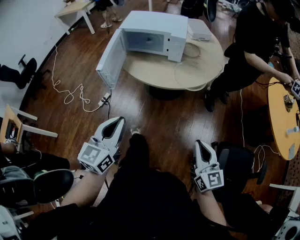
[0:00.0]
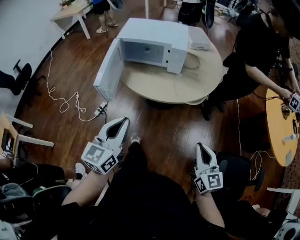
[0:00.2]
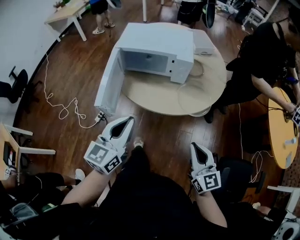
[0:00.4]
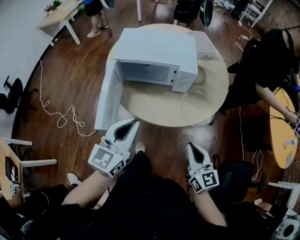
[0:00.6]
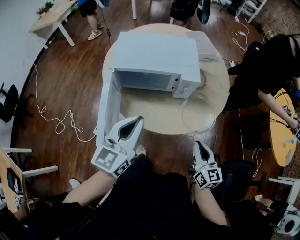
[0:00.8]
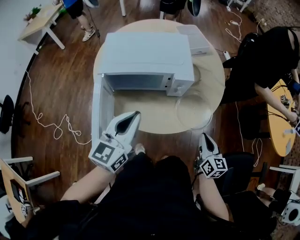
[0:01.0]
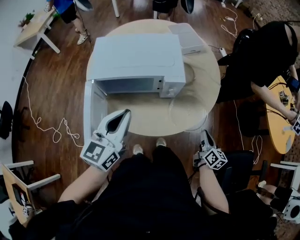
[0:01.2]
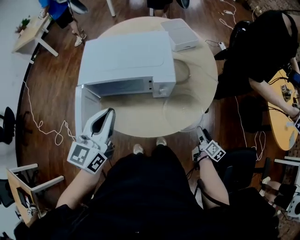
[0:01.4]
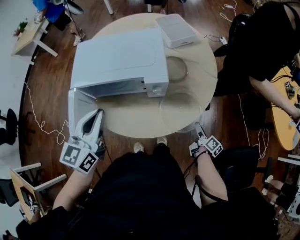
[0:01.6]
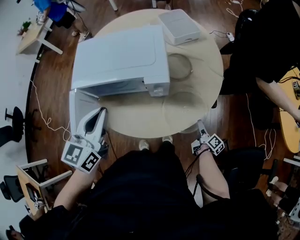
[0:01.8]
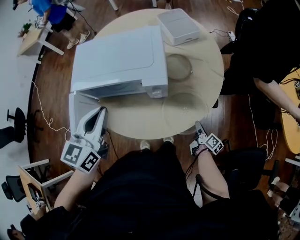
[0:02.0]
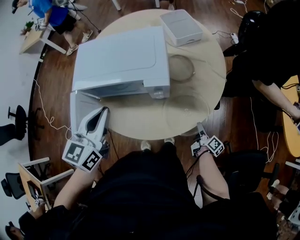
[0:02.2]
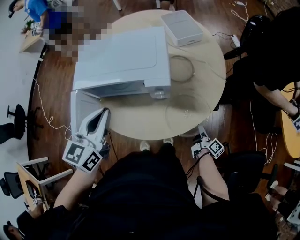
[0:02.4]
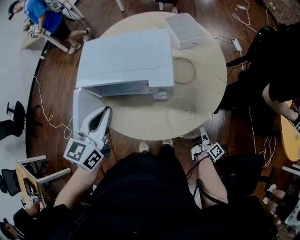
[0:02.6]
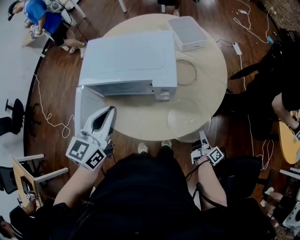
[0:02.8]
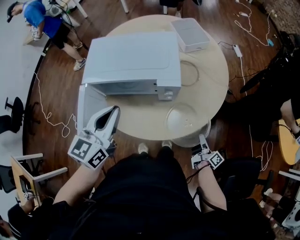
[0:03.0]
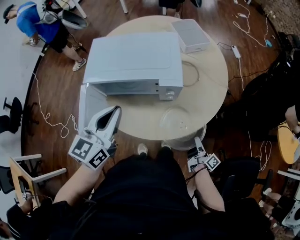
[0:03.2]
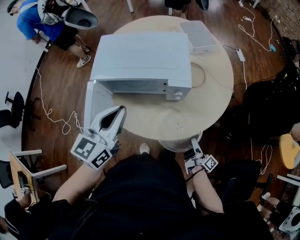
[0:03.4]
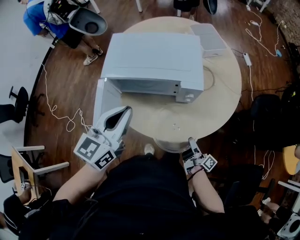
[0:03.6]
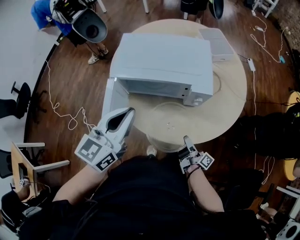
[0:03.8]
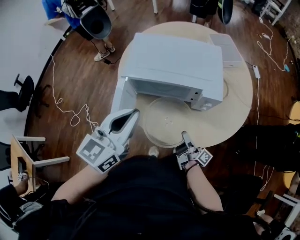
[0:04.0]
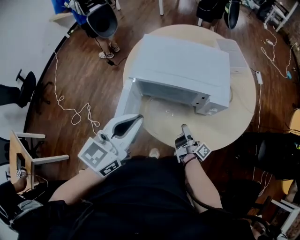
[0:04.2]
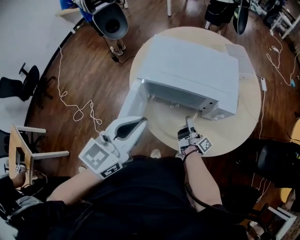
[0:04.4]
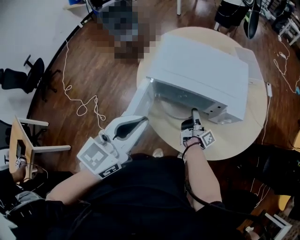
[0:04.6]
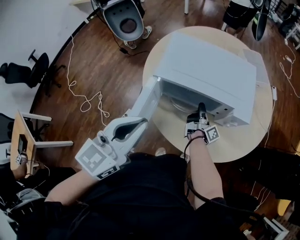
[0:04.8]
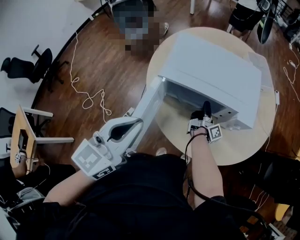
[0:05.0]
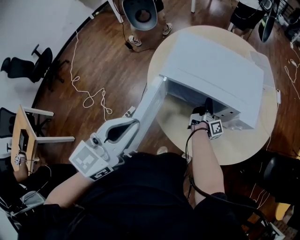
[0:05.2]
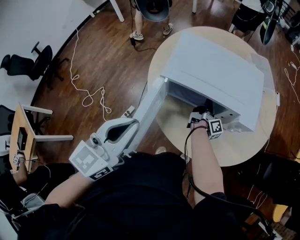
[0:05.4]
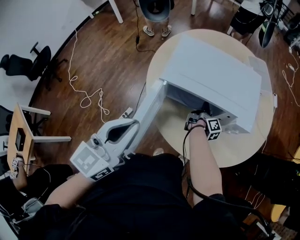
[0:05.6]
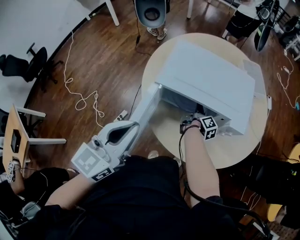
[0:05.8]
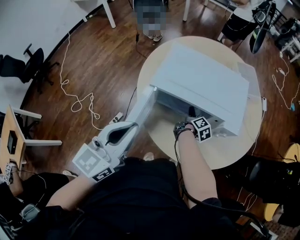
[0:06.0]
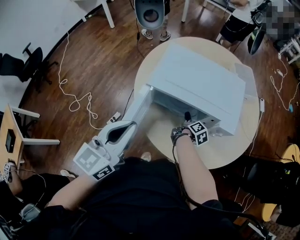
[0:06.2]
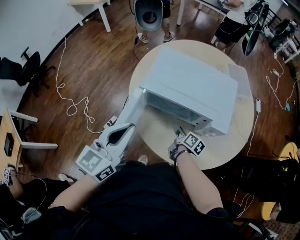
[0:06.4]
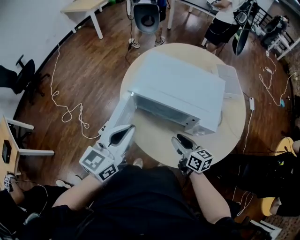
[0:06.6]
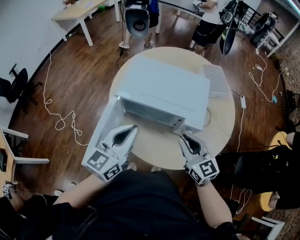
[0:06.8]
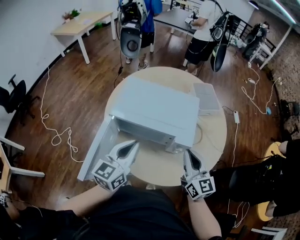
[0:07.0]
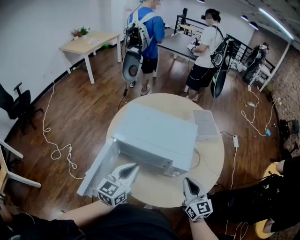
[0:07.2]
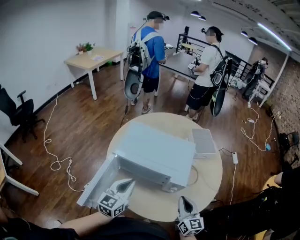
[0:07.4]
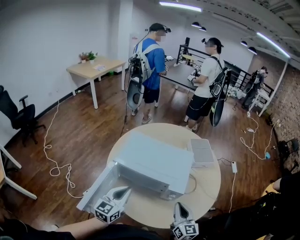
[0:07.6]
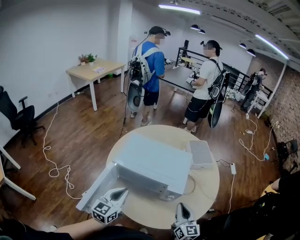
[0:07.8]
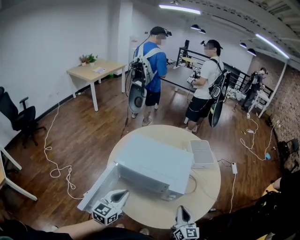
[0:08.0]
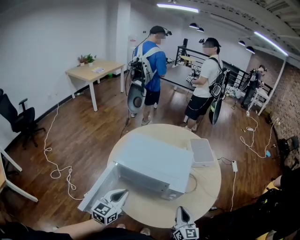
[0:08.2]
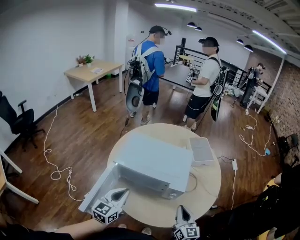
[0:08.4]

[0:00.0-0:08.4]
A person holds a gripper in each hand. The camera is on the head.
0:00.0 to 0:01.4: The left gripper heads forward, covering roughly 30 cm, while the right gripper travels forward and downward by approximately 35 cm, rotates around the line of its fingers by roughly 50 degrees, clockwise from behind, and opens its fingers.
0:01.4 to 0:02.8: The right gripper turns by some 30 degrees, and closes up.
0:02.8 to 0:04.2: The left gripper heads to the left, covering about 5 cm. Meanwhile the right gripper goes about 30 cm to the left, and rotates roughly 20 degrees.
0:04.2 to 0:05.6: The right gripper moves forward, roughly 15 cm, and swivels some 30 degrees; the left gripper goes about 10 cm to the left.
0:05.6 to 0:07.0: The left gripper moves approximately 15 cm; the right gripper travels upward by about 25 cm, rolls counterclockwise, seen from behind, by approximately 80 degrees, and opens, then closes again.
0:07.0 to 0:08.4: The left gripper moves about 5 cm, while the right gripper goes approximately 5 cm downward.

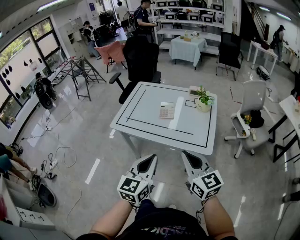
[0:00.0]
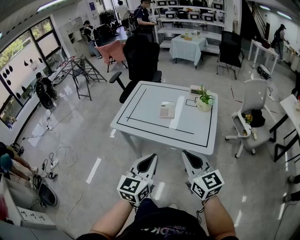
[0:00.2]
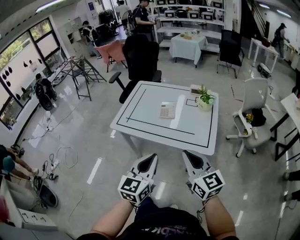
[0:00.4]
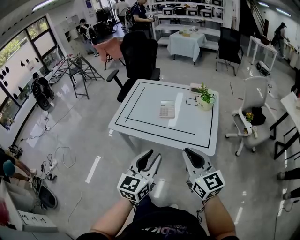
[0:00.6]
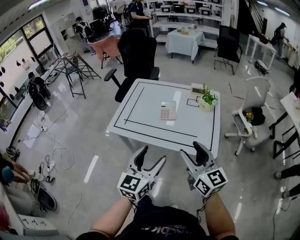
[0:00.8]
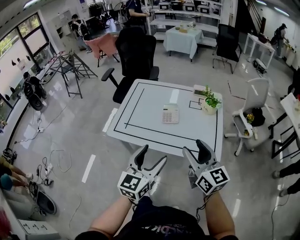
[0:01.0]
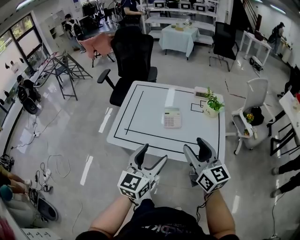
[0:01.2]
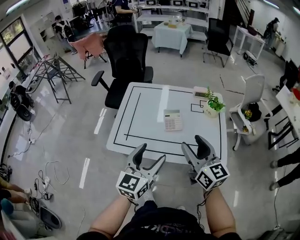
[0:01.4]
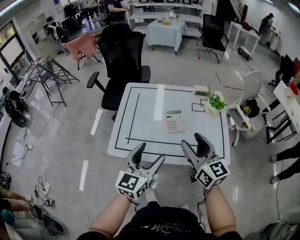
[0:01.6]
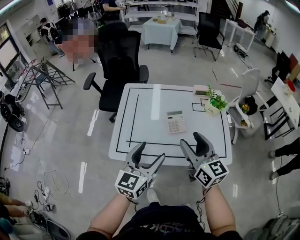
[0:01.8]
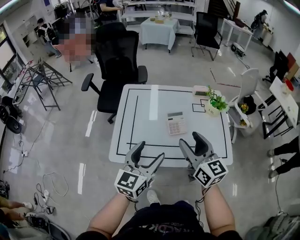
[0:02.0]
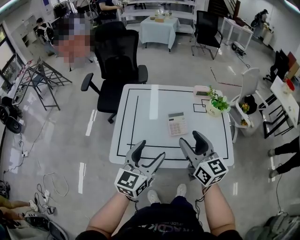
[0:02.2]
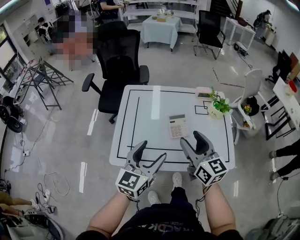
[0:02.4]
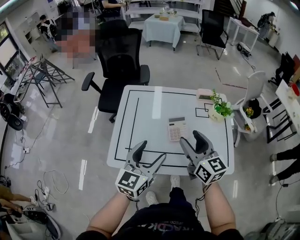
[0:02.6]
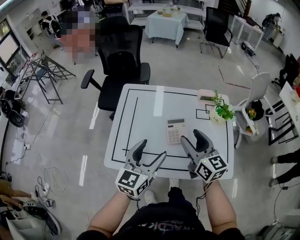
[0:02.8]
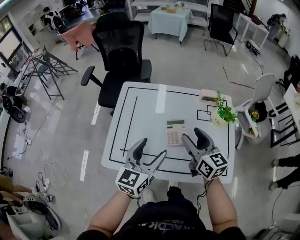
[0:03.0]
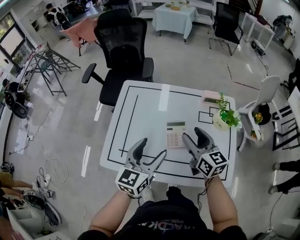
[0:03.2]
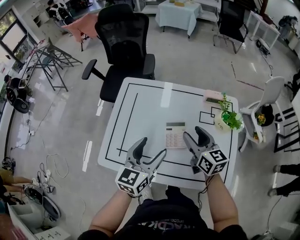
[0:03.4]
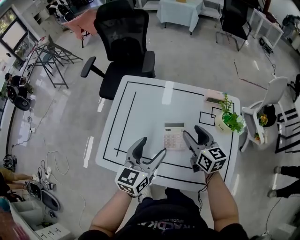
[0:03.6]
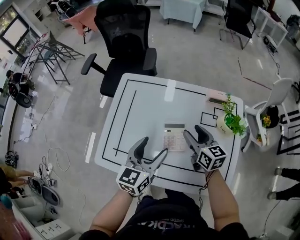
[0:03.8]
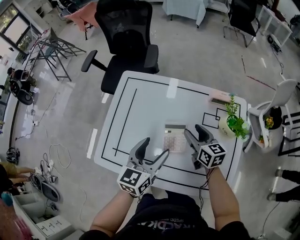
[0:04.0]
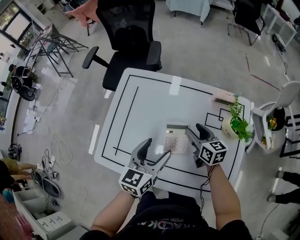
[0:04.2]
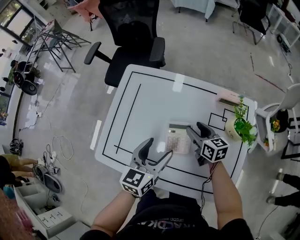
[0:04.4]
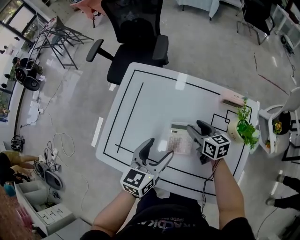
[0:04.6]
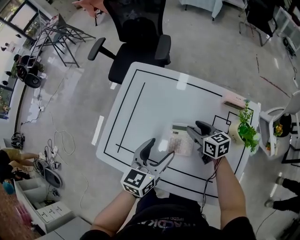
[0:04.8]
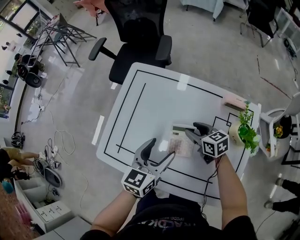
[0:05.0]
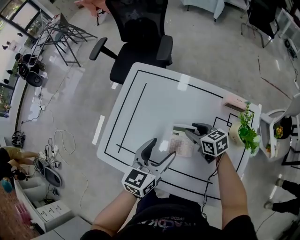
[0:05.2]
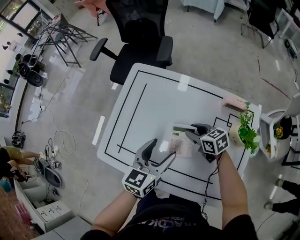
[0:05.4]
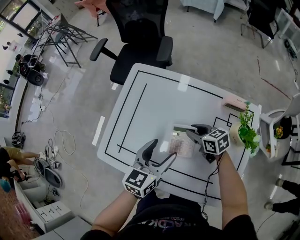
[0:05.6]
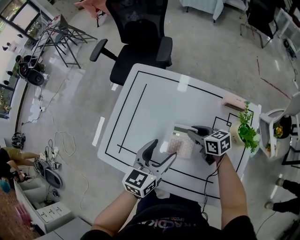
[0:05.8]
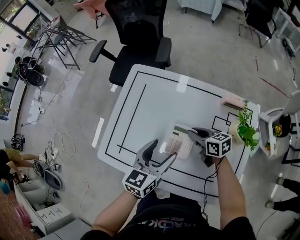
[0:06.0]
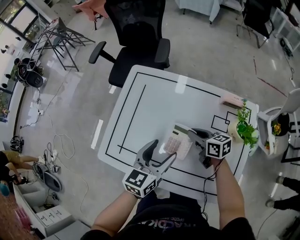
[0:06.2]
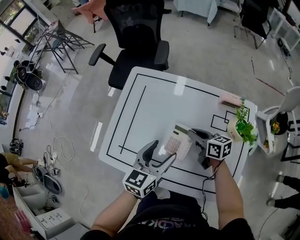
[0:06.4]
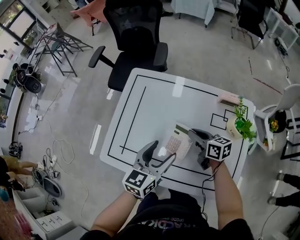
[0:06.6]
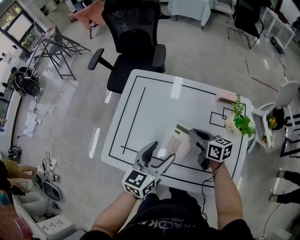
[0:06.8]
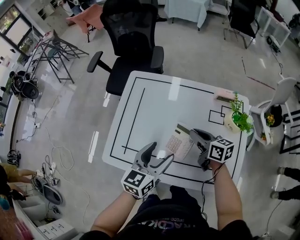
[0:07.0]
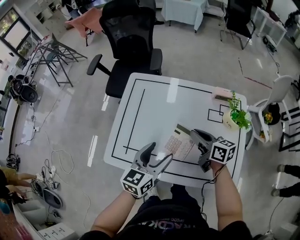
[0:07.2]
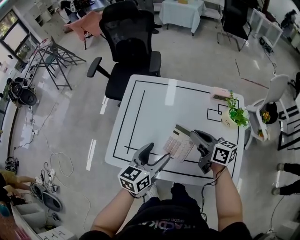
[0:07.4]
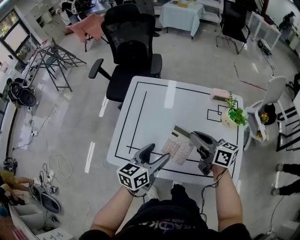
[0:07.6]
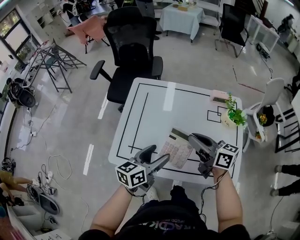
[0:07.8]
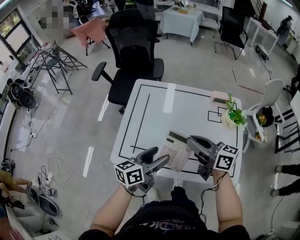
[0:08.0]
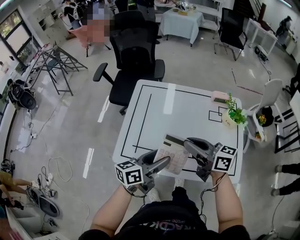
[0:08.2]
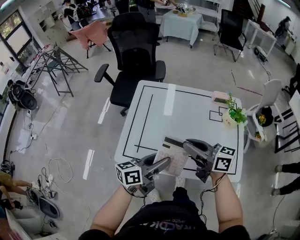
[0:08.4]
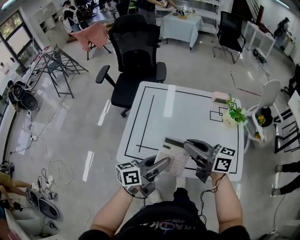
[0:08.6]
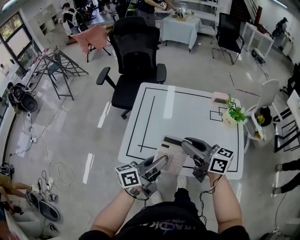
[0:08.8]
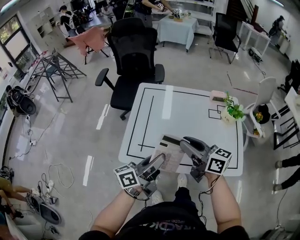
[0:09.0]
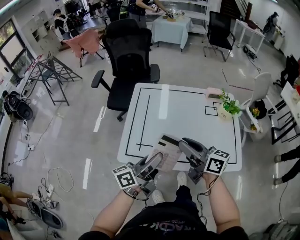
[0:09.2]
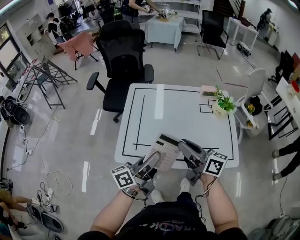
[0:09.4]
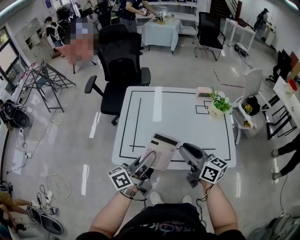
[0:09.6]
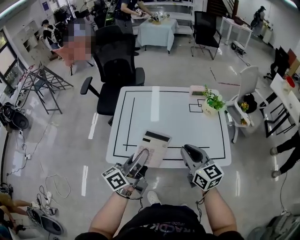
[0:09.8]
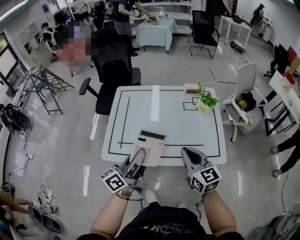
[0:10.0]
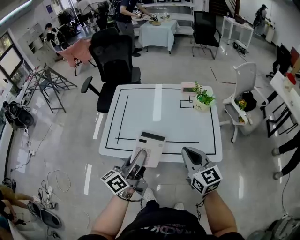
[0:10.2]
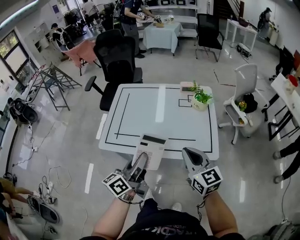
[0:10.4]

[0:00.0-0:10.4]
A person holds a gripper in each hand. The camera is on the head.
0:00.0 to 0:01.4: The right gripper goes roughly 25 cm forward, and opens. The left gripper goes about 25 cm forward and to the left, and opens.
0:01.4 to 0:03.0: The grippers both shift forward by roughly 20 cm.
0:03.0 to 0:04.4: The left gripper goes about 15 cm downward, forward and to the right. The right gripper heads downward and forward, covering some 25 cm, and rotates some 20 degrees.
0:04.4 to 0:06.0: The right gripper closes.
0:06.0 to 0:07.4: The right gripper goes roughly 15 cm upward and backward, and changes its angle by some 20 degrees; the left gripper travels to the left and backward by approximately 10 cm.
0:07.4 to 0:09.0: The left gripper travels backward, to the left and upward by roughly 15 cm, changes its angle by some 40 degrees, and closes, while the right gripper heads to the left, backward and upward, covering approximately 20 cm.
0:09.0 to 0:10.4: The right gripper goes roughly 25 cm to the right and backward, and swivels about 30 degrees, while the left gripper shifts approximately 15 cm to the right and backward.

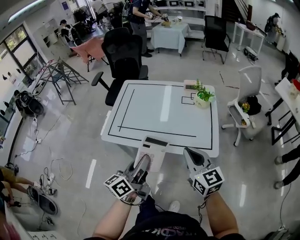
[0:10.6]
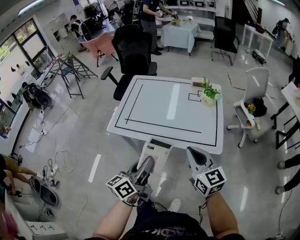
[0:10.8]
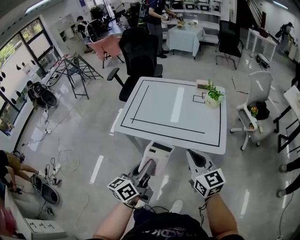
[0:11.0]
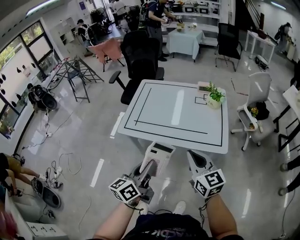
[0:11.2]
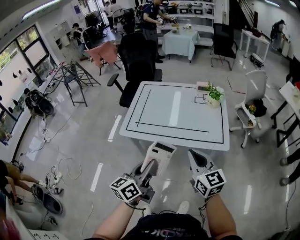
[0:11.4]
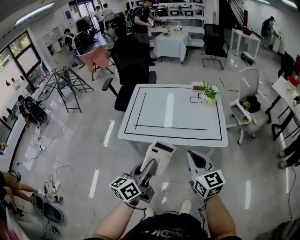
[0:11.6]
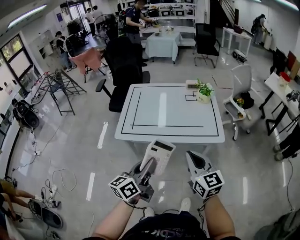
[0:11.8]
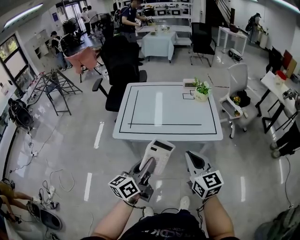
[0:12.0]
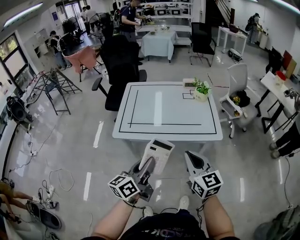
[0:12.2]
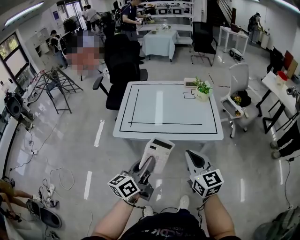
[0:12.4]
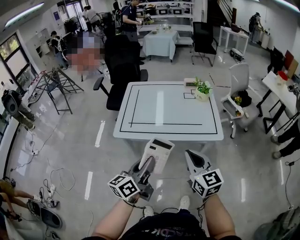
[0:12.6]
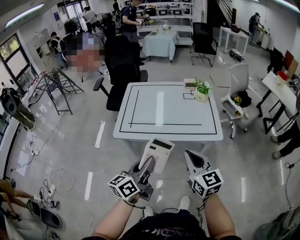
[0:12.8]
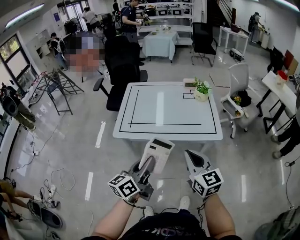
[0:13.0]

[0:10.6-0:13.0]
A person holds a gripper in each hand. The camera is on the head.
0:10.6 to 0:11.8: The two grippers go about 15 cm backward and to the left.
0:11.8 to 0:13.0: The two grippers keep their place.

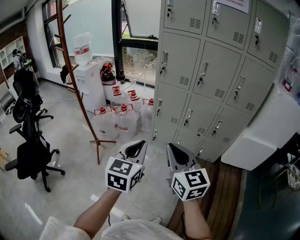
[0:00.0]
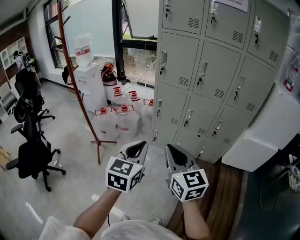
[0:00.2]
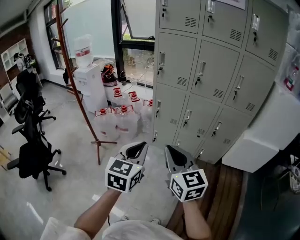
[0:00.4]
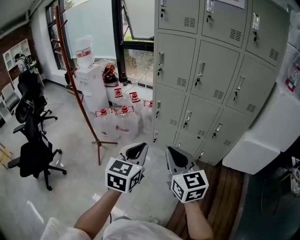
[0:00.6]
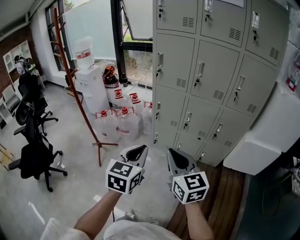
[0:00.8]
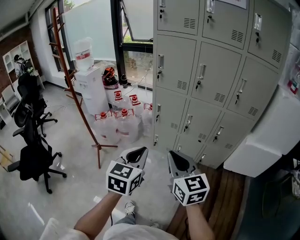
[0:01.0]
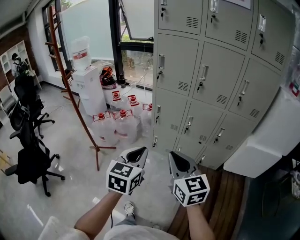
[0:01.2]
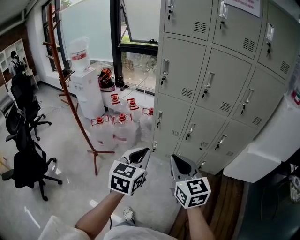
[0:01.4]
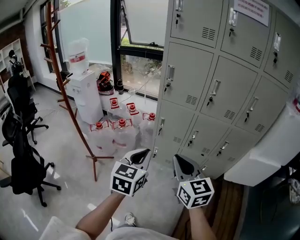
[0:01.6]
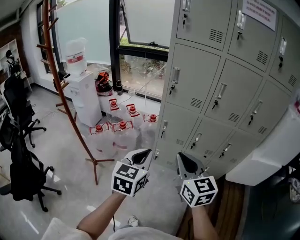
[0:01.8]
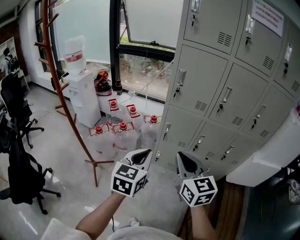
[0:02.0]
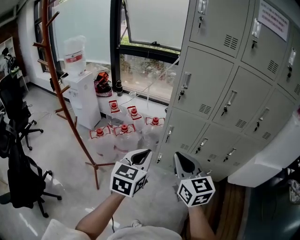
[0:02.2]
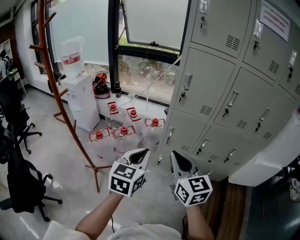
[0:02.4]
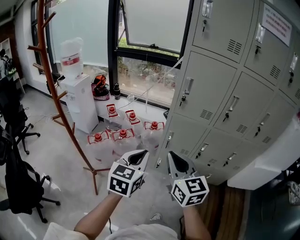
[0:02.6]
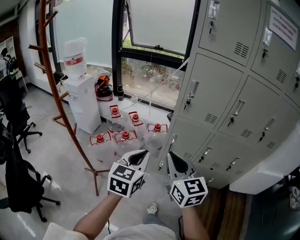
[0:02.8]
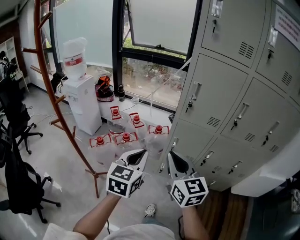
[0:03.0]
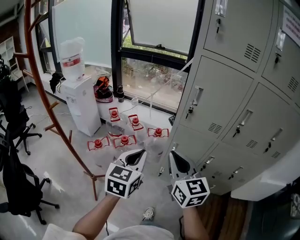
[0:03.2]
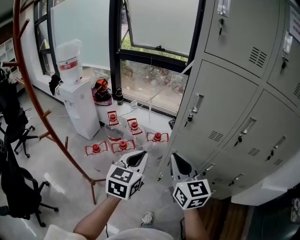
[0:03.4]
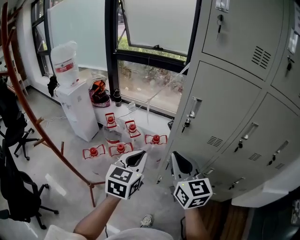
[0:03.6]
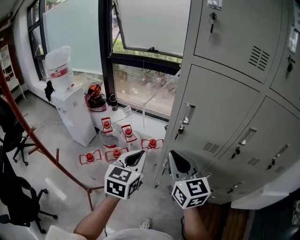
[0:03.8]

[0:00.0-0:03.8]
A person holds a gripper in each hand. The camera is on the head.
0:00.0 to 0:01.2: The two grippers go about 10 cm forward and to the right.
0:01.2 to 0:02.6: Both grippers move forward and to the left, roughly 30 cm.
0:02.6 to 0:03.8: Both grippers travel together forward, some 25 cm.
